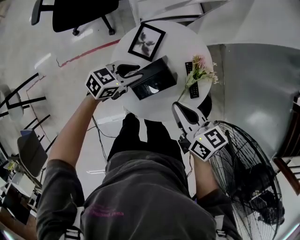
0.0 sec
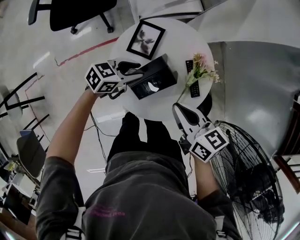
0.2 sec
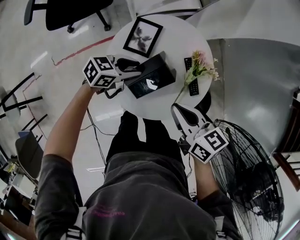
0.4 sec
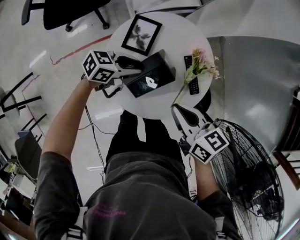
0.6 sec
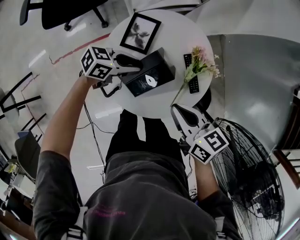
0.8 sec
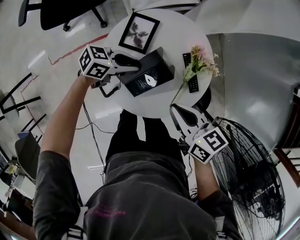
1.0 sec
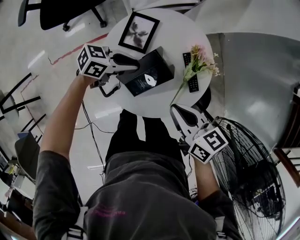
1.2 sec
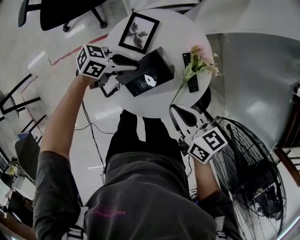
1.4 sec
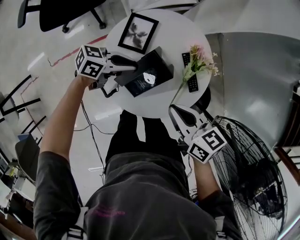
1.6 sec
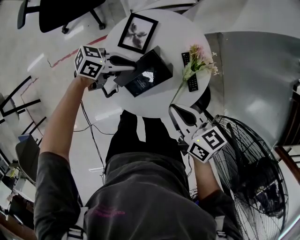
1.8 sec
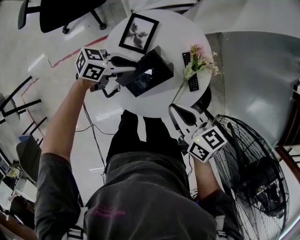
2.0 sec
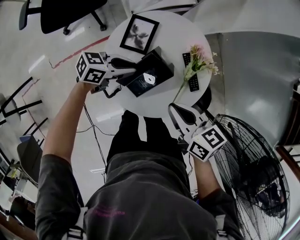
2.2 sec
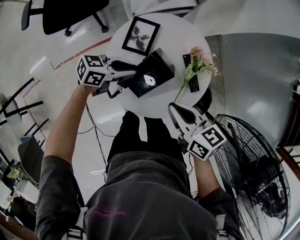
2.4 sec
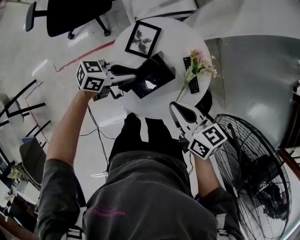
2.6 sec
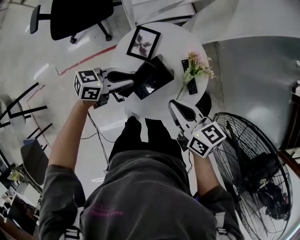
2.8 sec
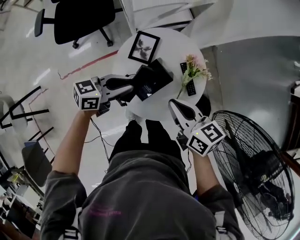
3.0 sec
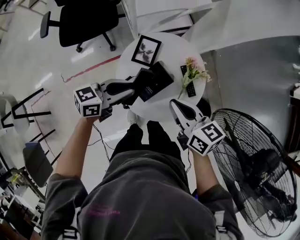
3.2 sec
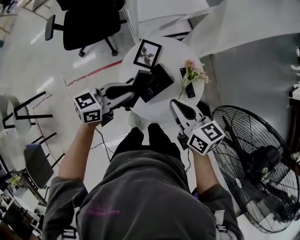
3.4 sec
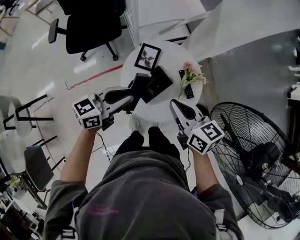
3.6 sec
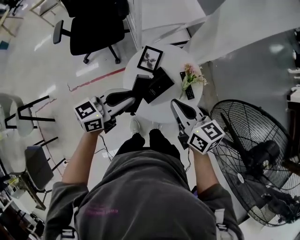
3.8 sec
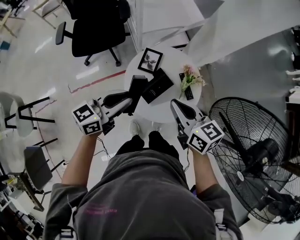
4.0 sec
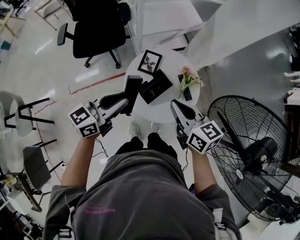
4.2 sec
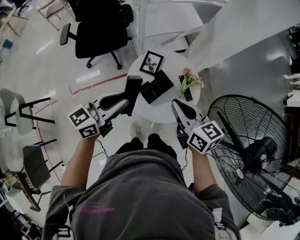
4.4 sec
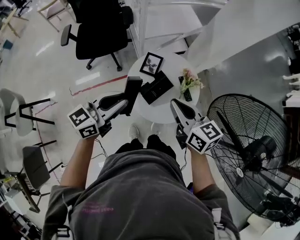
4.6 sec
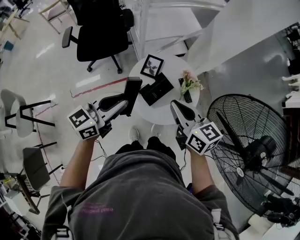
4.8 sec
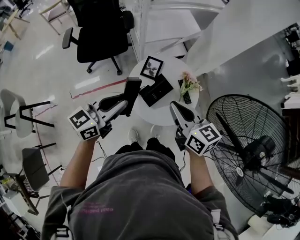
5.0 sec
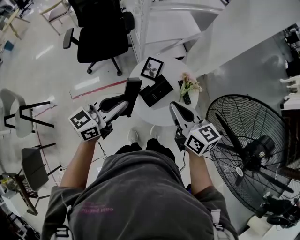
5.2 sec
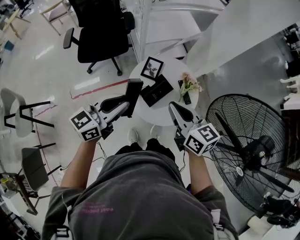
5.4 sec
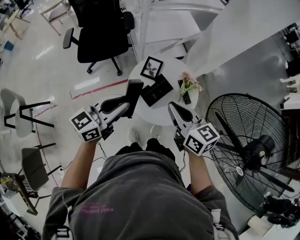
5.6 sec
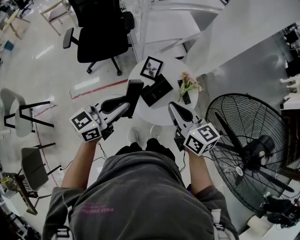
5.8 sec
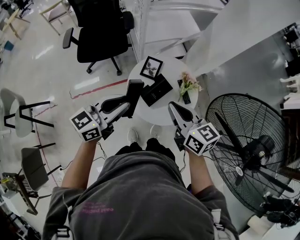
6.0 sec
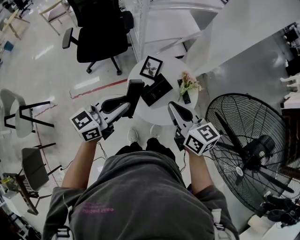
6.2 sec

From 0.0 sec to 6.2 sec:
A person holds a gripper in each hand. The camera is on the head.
From 0.0 sec to 1.6 sec: The left gripper changes its angle by about 30 degrees.
From 1.6 sec to 3.2 sec: The right gripper shifts some 10 cm upward; the left gripper shifts about 15 cm upward, and changes its angle by roughly 20 degrees.
From 3.2 sec to 4.6 sec: The two grippers go approximately 15 cm upward and backward. The left gripper swivels some 20 degrees.
From 4.6 sec to 6.2 sec: The grippers make only small movements.

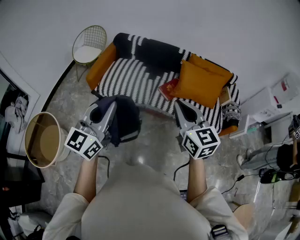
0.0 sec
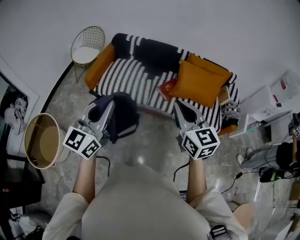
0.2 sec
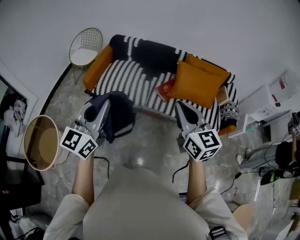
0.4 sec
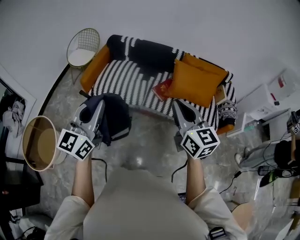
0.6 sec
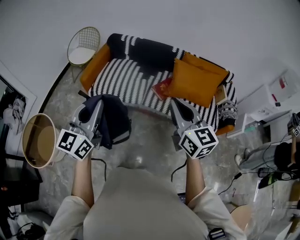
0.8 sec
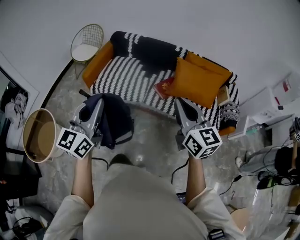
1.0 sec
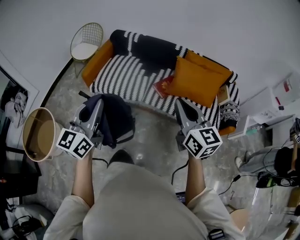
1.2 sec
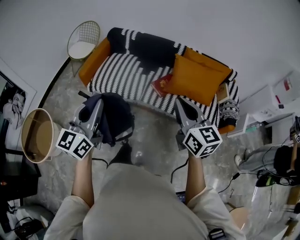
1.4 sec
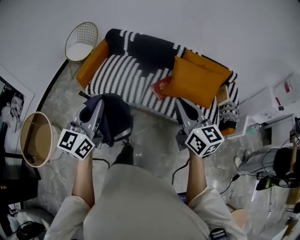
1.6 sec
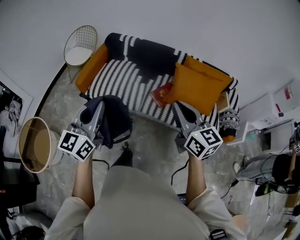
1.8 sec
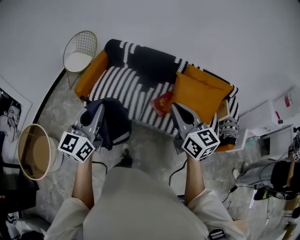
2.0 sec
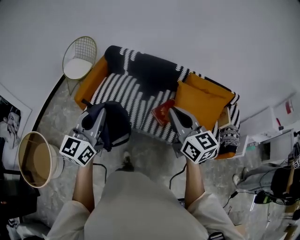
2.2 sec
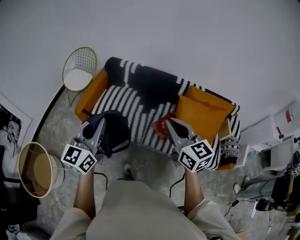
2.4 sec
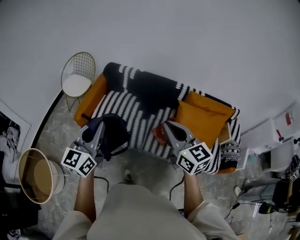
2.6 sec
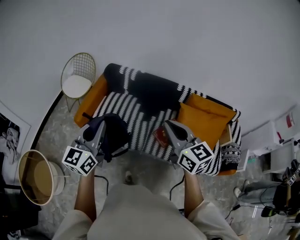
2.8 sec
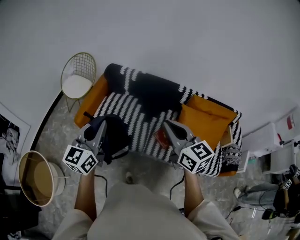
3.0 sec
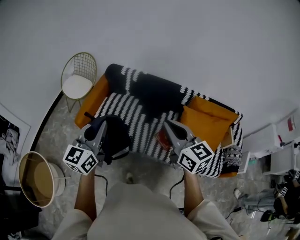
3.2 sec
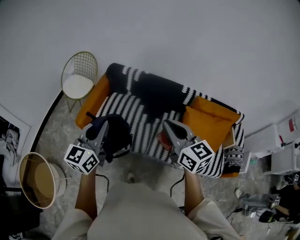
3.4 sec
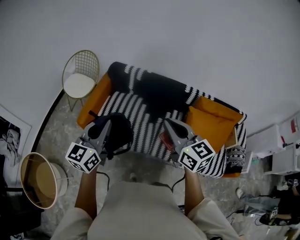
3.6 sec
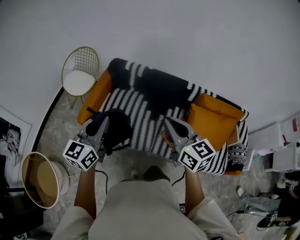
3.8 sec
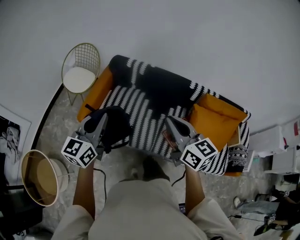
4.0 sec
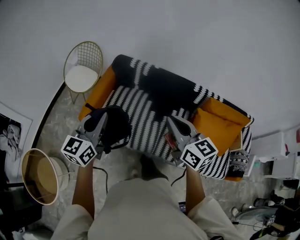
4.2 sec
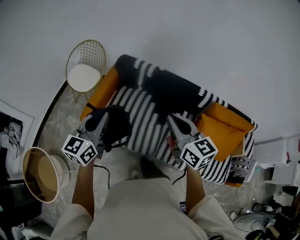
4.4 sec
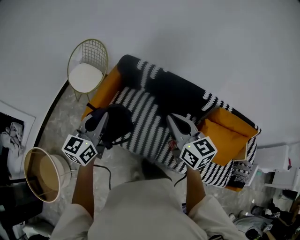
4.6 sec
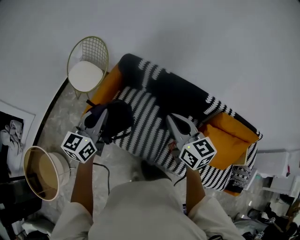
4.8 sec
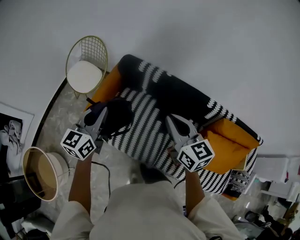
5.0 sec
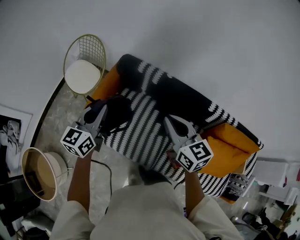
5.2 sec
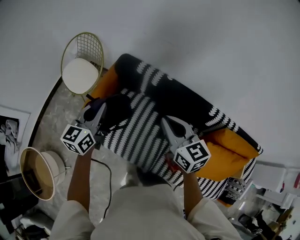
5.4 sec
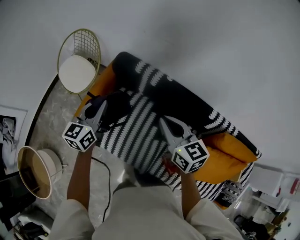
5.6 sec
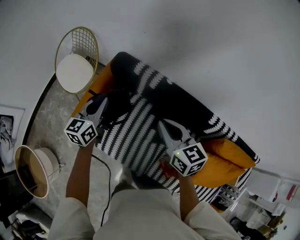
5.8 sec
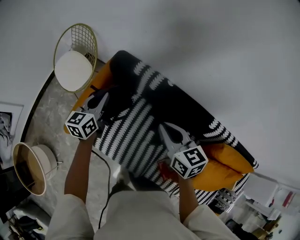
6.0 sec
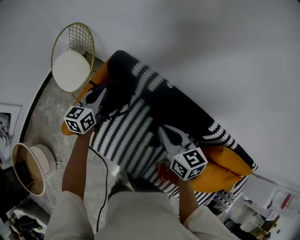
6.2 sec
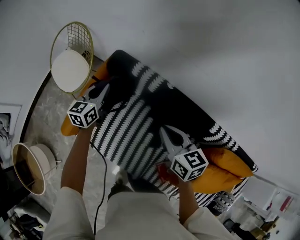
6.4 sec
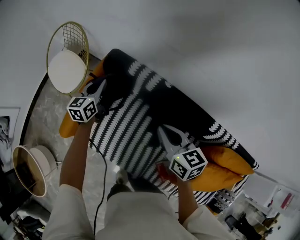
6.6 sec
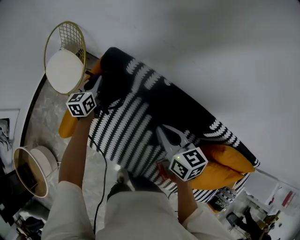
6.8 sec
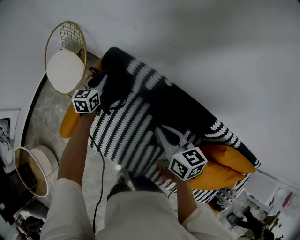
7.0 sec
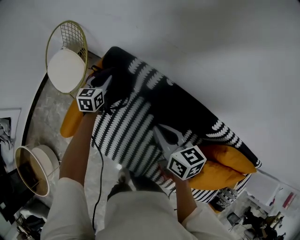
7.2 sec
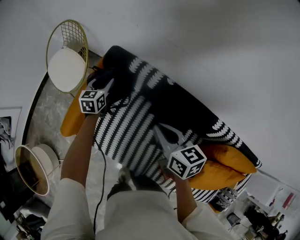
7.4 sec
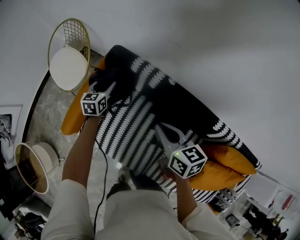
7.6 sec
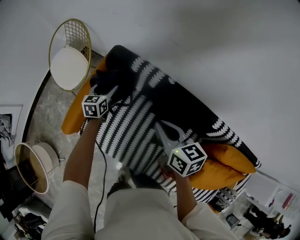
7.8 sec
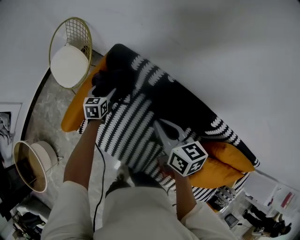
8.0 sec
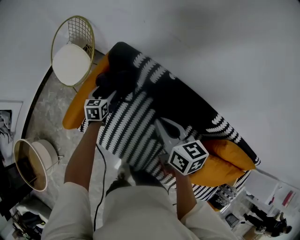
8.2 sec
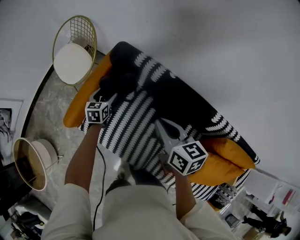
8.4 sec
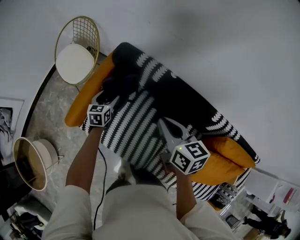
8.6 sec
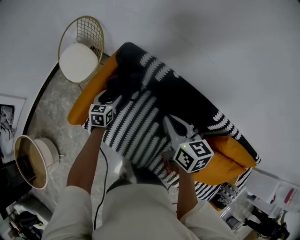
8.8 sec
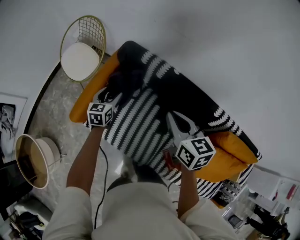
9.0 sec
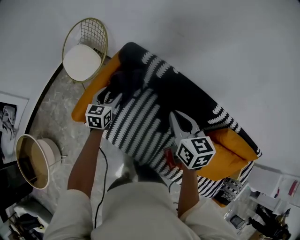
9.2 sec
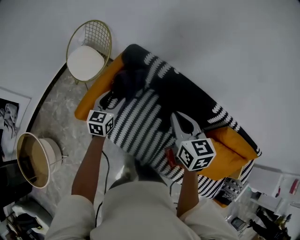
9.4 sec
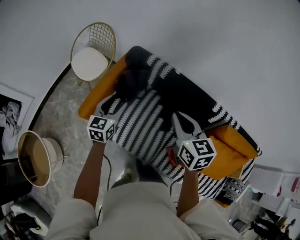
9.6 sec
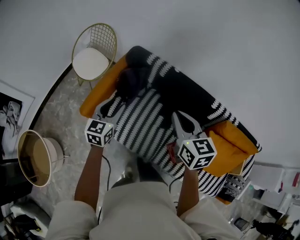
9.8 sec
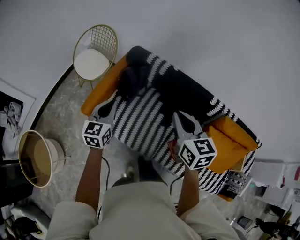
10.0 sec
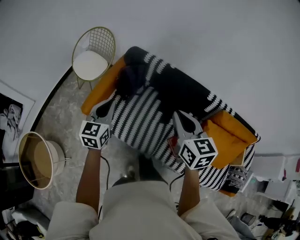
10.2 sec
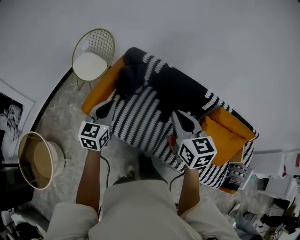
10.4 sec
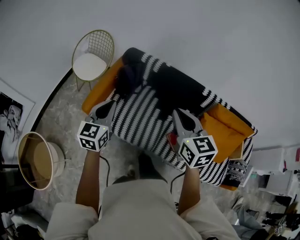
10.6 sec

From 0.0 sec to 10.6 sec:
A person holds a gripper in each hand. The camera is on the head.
From 0.0 sec to 1.6 sec: The left gripper goes about 10 cm forward and to the right. The right gripper heads to the right and forward, covering approximately 15 cm.
From 1.6 sec to 3.0 sec: The grippers both shift forward by about 30 cm.
From 3.0 sec to 4.6 sec: The two grippers go about 25 cm forward.
From 4.6 sec to 6.0 sec: Both grippers travel together forward and downward, approximately 40 cm.
From 6.0 sec to 7.6 sec: The right gripper shifts about 5 cm downward; the left gripper moves downward and forward, about 20 cm, and opens.
From 7.6 sec to 9.0 sec: The left gripper goes approximately 15 cm backward, while the right gripper heads backward and upward, covering roughly 10 cm.
From 9.0 sec to 10.6 sec: Both grippers move backward and upward, roughly 40 cm. The left gripper swivels about 20 degrees, and closes its fingers.

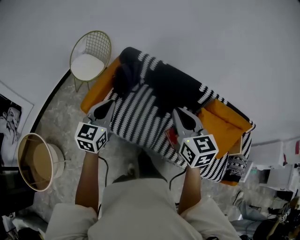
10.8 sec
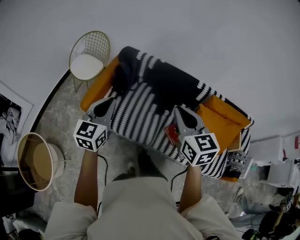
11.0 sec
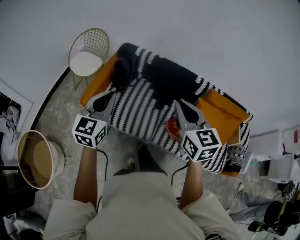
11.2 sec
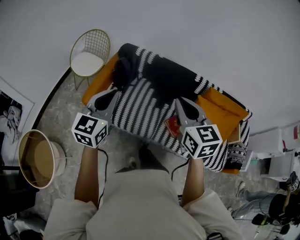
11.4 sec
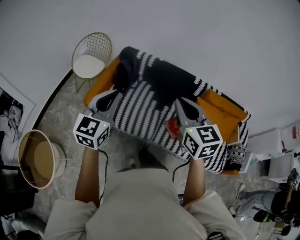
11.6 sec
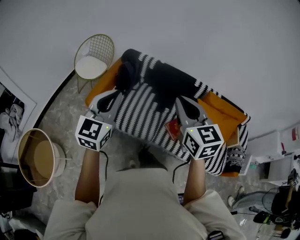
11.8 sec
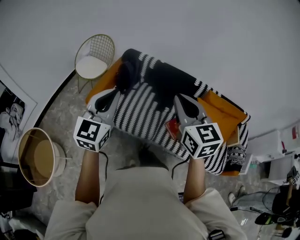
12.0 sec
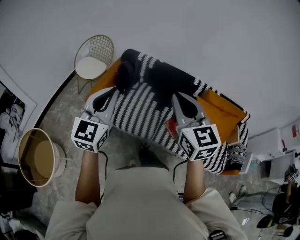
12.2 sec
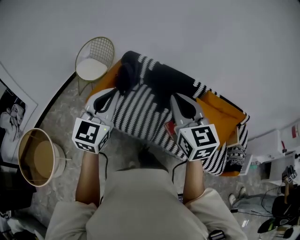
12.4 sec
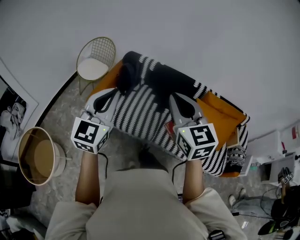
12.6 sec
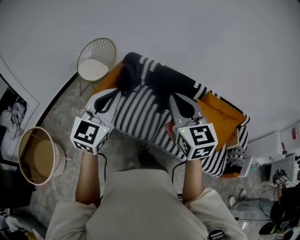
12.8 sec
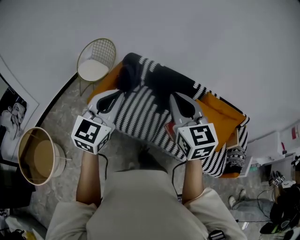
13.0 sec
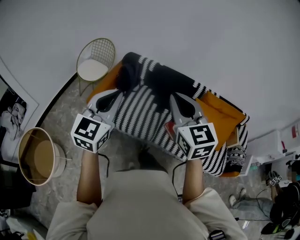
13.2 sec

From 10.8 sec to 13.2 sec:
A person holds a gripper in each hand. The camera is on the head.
From 10.8 sec to 12.0 sec: Both grippers move backward and upward, roughly 20 cm.
From 12.0 sec to 13.2 sec: The left gripper changes place by approximately 5 cm.

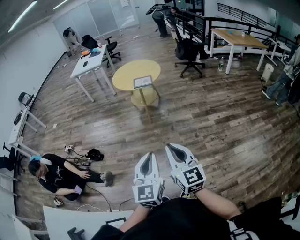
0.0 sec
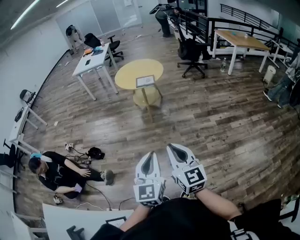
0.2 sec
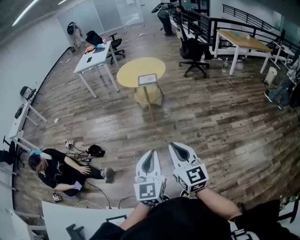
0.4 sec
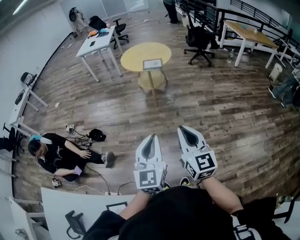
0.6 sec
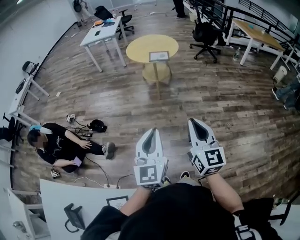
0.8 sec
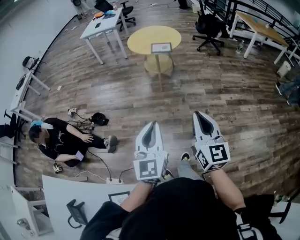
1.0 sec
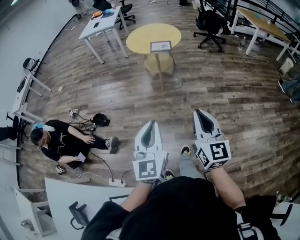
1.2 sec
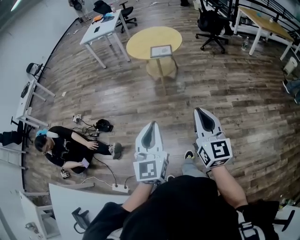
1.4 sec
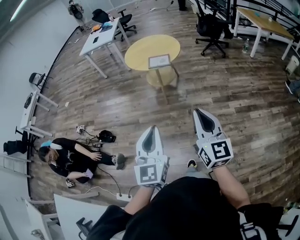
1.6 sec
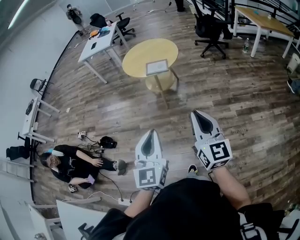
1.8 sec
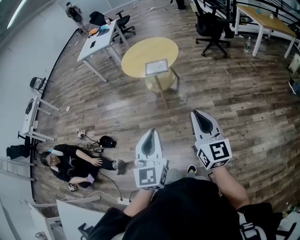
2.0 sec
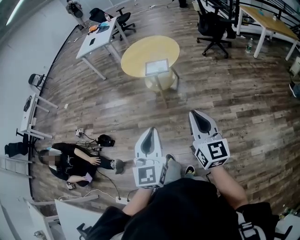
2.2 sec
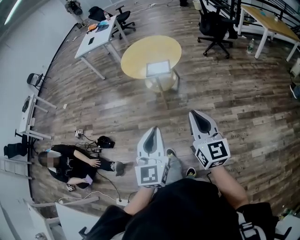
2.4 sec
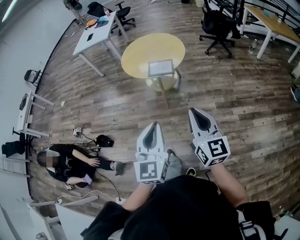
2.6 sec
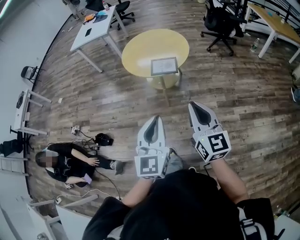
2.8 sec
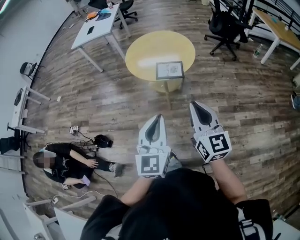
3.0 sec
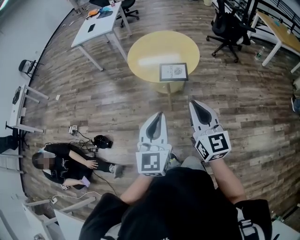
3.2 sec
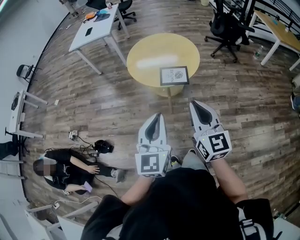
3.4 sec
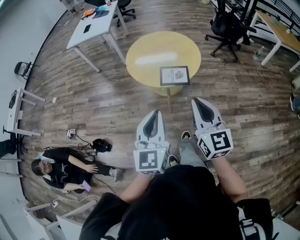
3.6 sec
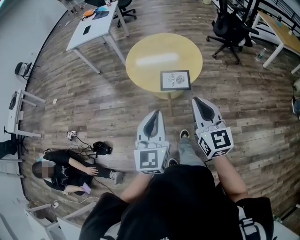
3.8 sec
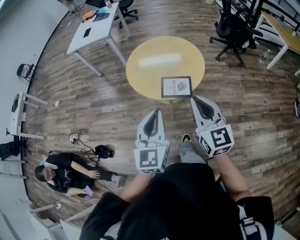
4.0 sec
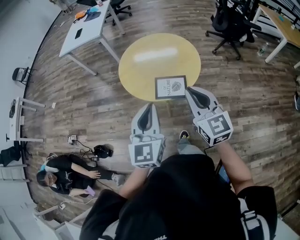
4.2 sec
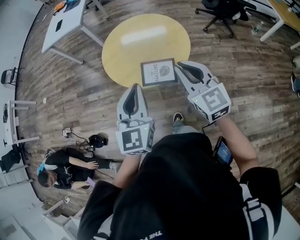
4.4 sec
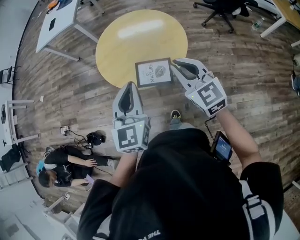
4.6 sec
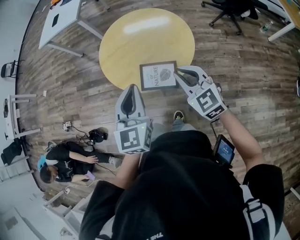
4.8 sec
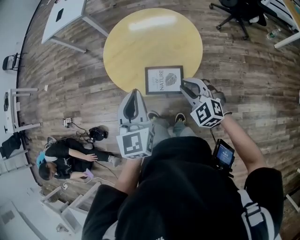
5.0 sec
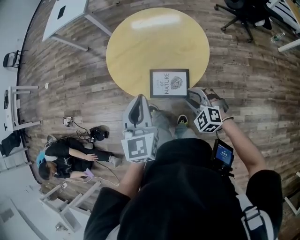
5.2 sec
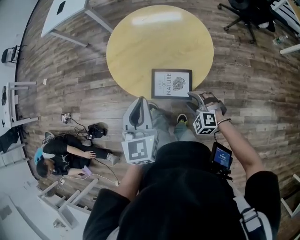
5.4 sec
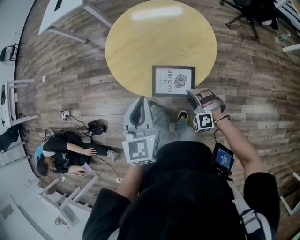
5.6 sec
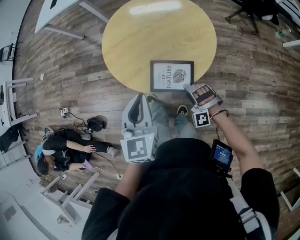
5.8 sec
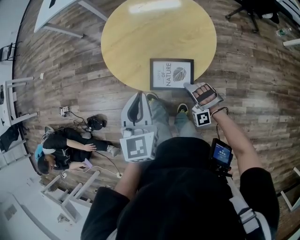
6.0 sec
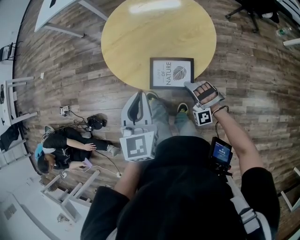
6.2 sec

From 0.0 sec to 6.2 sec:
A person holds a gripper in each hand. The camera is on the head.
From 0.0 sec to 1.6 sec: The left gripper heads forward, covering some 20 cm. Meanwhile the right gripper heads forward and to the right, covering roughly 20 cm.
From 1.6 sec to 3.2 sec: Both grippers move forward, some 35 cm.
From 3.2 sec to 4.6 sec: Both grippers travel together forward, approximately 35 cm. The right gripper changes its angle by roughly 30 degrees.
From 4.6 sec to 6.2 sec: The left gripper moves downward and forward, about 10 cm, while the right gripper moves downward, some 30 cm, twists roughly 70 degrees counterclockwise, seen from behind, and opens.
